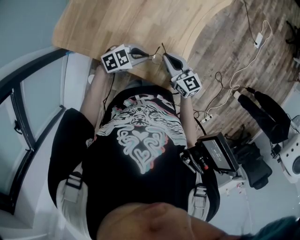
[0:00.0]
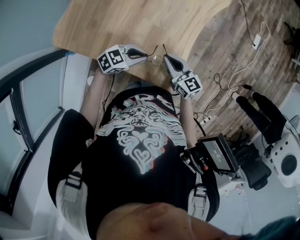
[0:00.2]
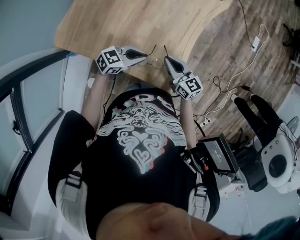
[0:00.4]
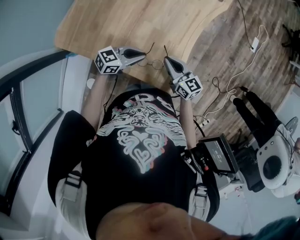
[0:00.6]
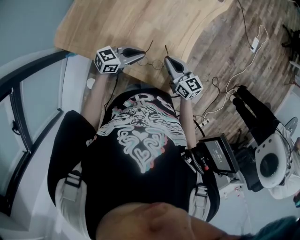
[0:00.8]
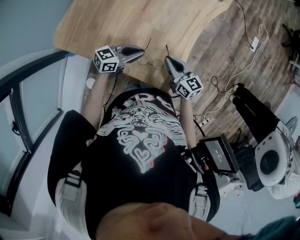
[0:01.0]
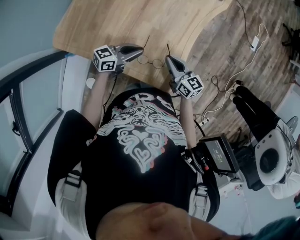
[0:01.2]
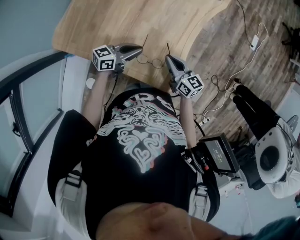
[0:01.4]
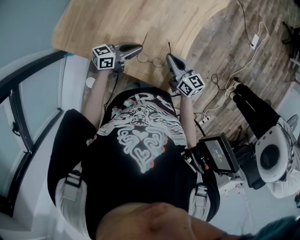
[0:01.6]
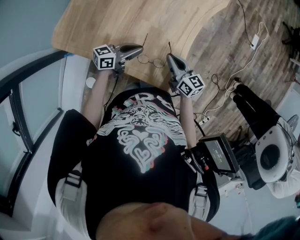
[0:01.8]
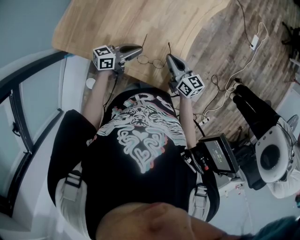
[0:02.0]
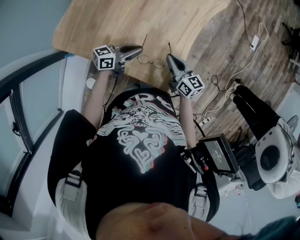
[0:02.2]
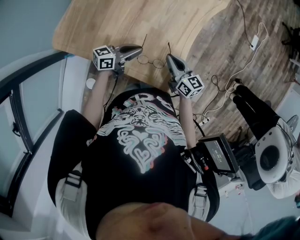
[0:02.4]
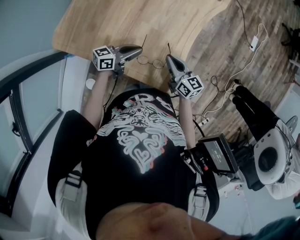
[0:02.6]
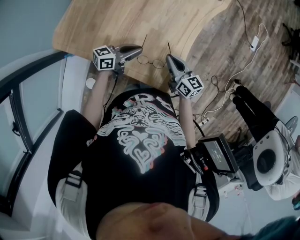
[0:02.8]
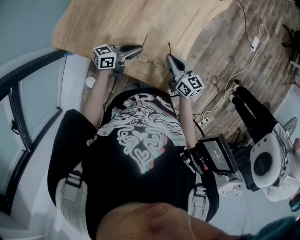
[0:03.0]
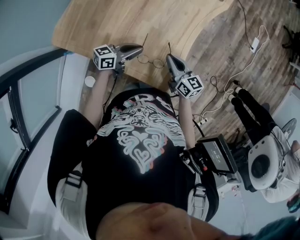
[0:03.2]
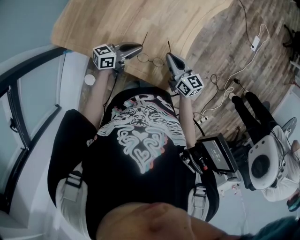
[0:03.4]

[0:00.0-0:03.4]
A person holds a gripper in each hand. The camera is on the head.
0:00.0 to 0:01.6: The left gripper changes place by about 5 cm, and swivels about 50 degrees.
0:01.6 to 0:03.4: Neither gripper changes place.

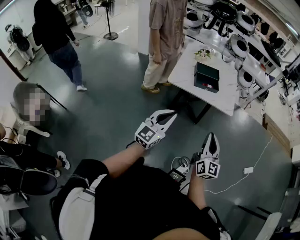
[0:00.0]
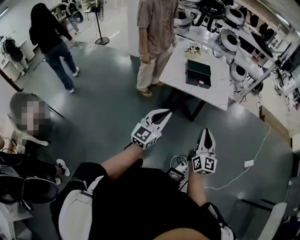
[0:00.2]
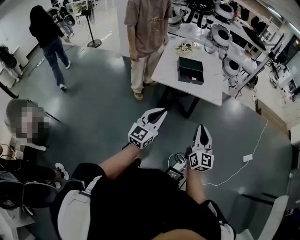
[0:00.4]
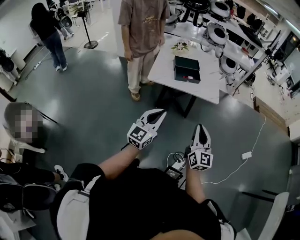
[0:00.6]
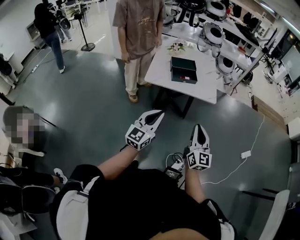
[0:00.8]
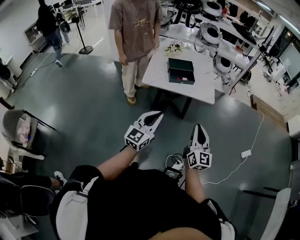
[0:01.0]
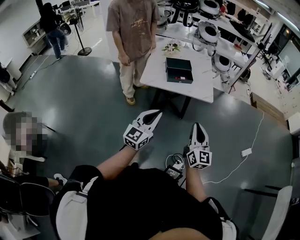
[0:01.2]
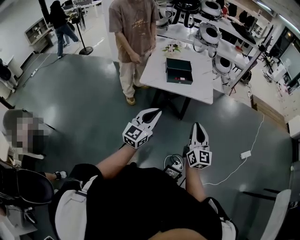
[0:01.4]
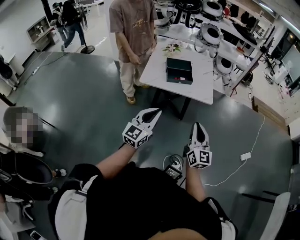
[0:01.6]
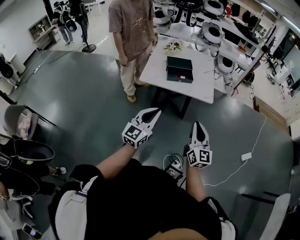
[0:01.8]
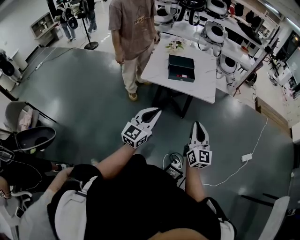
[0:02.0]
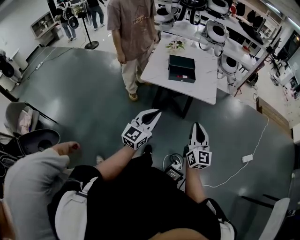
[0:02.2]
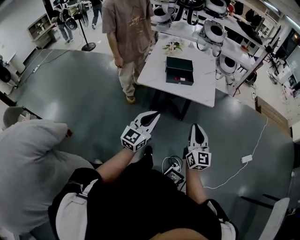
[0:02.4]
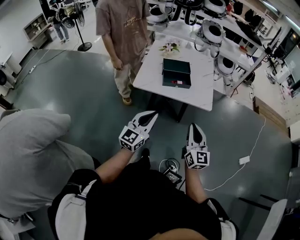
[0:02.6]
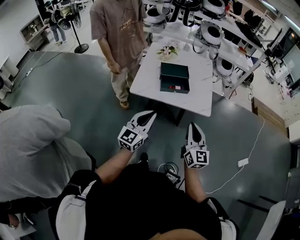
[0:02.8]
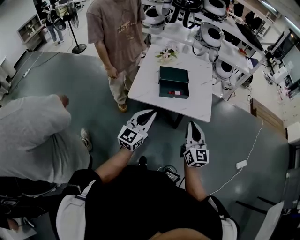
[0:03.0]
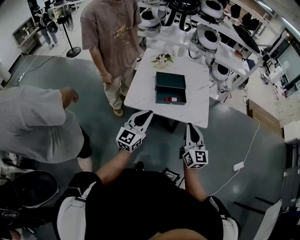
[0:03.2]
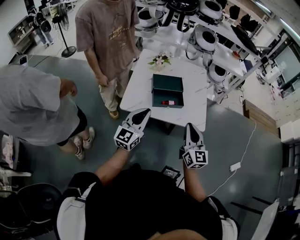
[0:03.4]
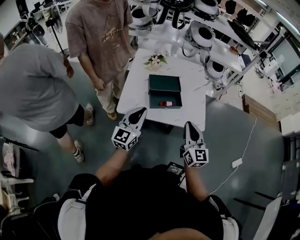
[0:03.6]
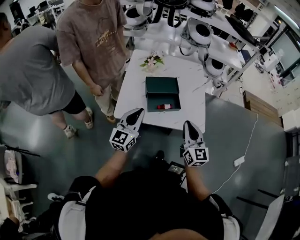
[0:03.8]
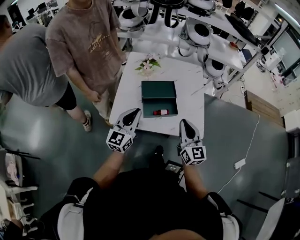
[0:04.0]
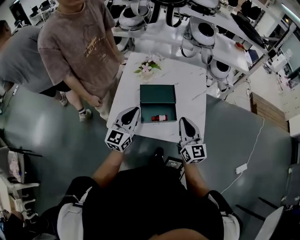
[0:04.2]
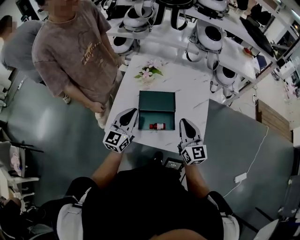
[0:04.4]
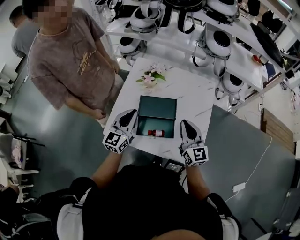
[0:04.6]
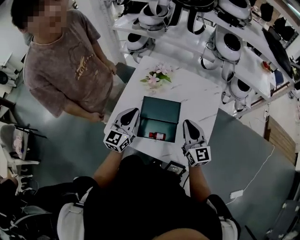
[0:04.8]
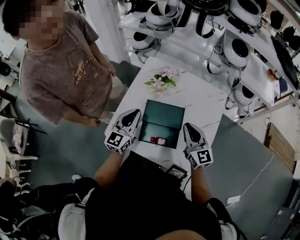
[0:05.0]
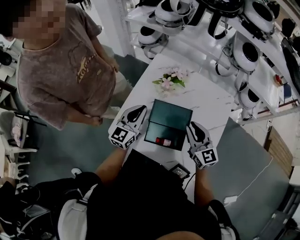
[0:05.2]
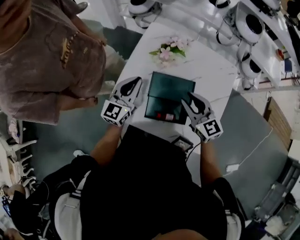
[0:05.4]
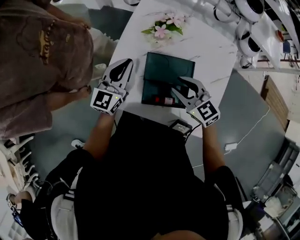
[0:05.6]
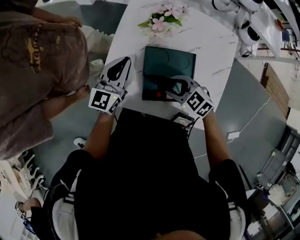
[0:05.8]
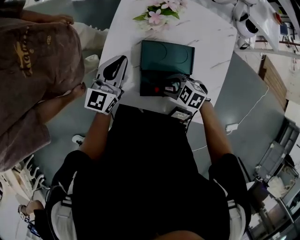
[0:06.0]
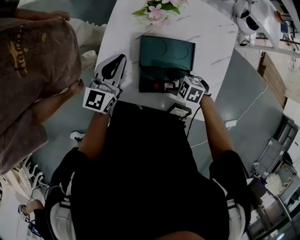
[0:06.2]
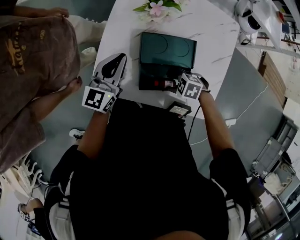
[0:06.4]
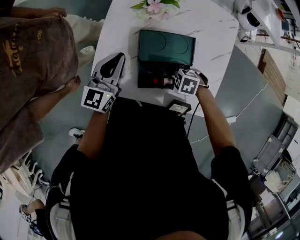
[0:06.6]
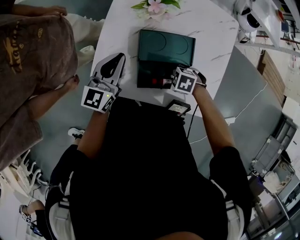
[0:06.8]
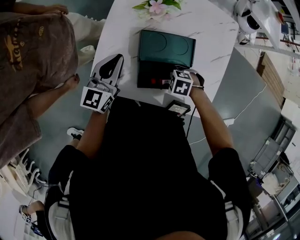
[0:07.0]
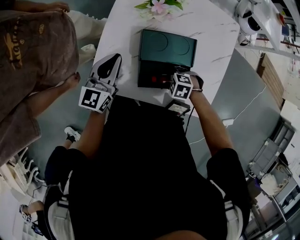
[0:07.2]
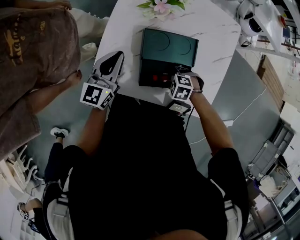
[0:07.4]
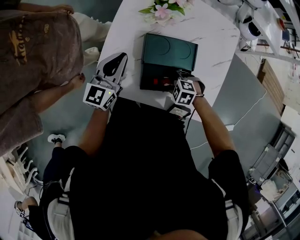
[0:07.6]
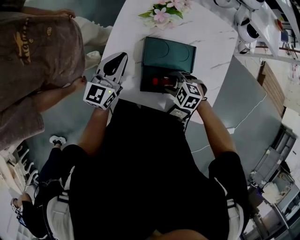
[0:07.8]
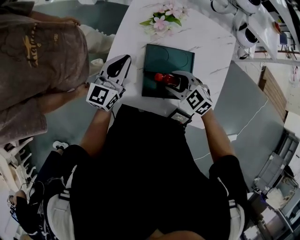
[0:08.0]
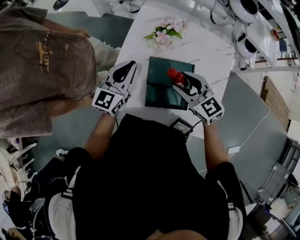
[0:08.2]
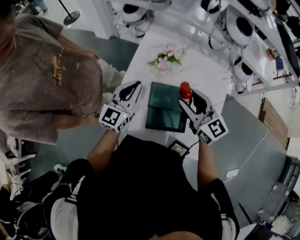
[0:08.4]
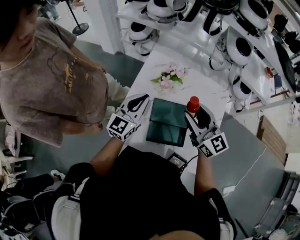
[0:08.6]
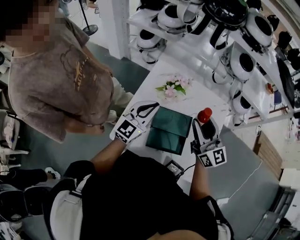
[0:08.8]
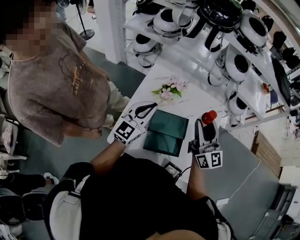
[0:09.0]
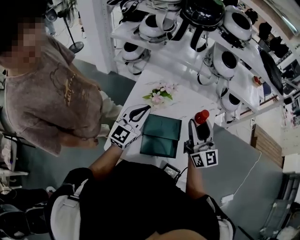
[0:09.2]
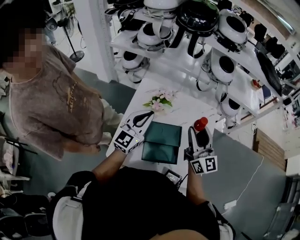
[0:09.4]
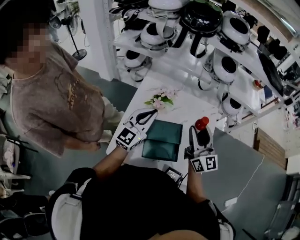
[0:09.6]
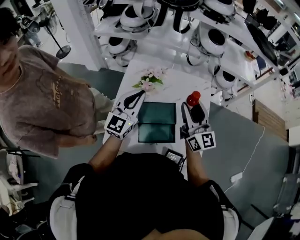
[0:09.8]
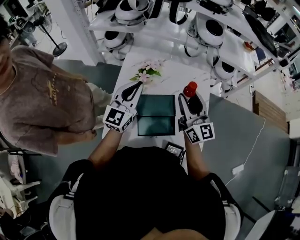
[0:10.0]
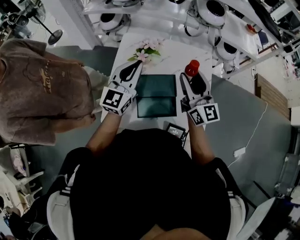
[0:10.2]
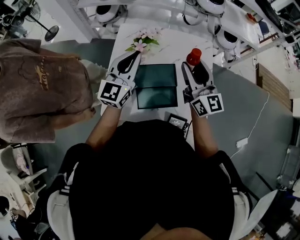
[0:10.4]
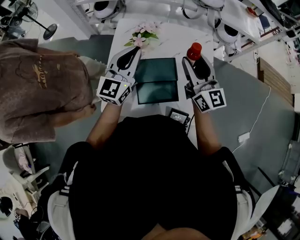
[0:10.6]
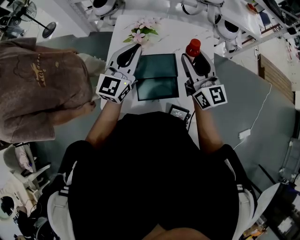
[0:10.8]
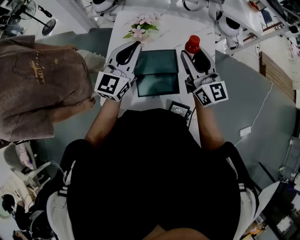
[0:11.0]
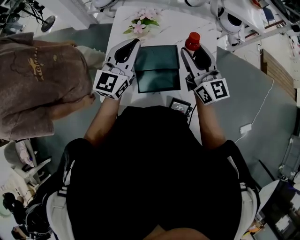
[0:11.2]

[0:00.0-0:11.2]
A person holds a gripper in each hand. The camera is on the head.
0:00.0 to 0:01.6: The two grippers go some 10 cm to the right.
0:01.6 to 0:03.2: Both grippers move forward, approximately 25 cm.
0:03.2 to 0:04.8: The grippers both shift forward by about 35 cm. The right gripper rotates approximately 20 degrees.
0:04.8 to 0:06.4: The left gripper heads downward, covering about 10 cm. The right gripper is displaced downward by about 25 cm, tips its fingers downward by about 60 degrees, and opens its fingers.
0:06.4 to 0:08.0: The right gripper goes approximately 10 cm upward, and rotates about 40 degrees.
0:08.0 to 0:09.6: The left gripper moves upward, about 15 cm. The right gripper heads upward, covering roughly 25 cm, and tips its fingers upward by about 60 degrees.
0:09.6 to 0:11.2: The grippers stay close to where they were, moving slightly.

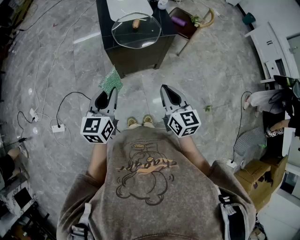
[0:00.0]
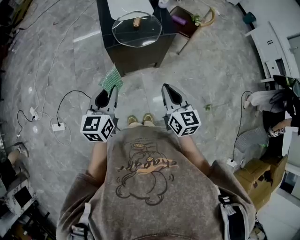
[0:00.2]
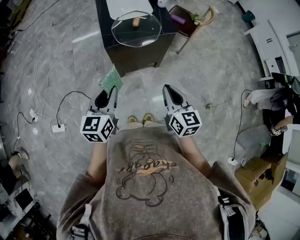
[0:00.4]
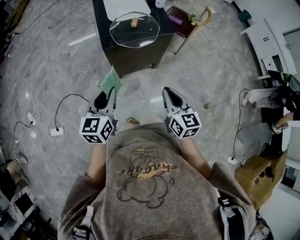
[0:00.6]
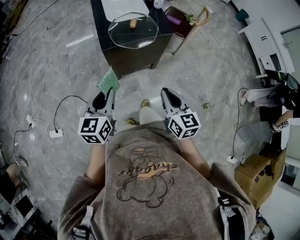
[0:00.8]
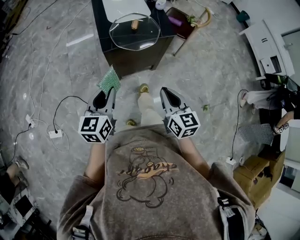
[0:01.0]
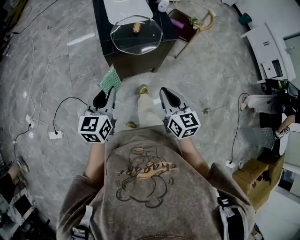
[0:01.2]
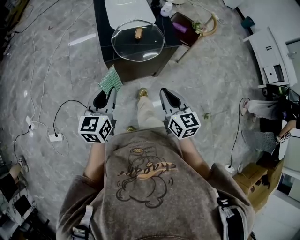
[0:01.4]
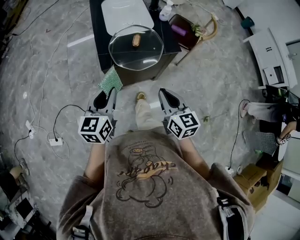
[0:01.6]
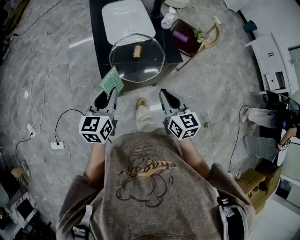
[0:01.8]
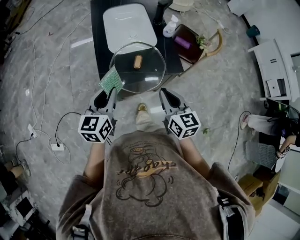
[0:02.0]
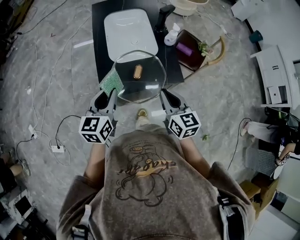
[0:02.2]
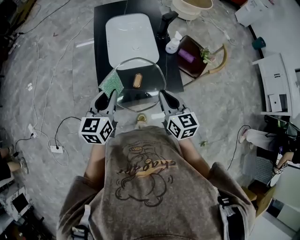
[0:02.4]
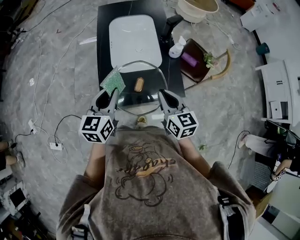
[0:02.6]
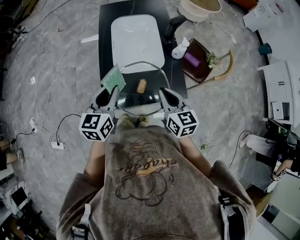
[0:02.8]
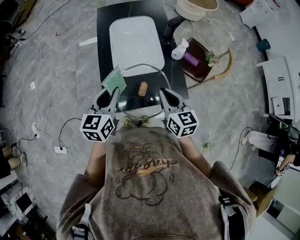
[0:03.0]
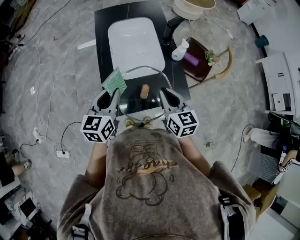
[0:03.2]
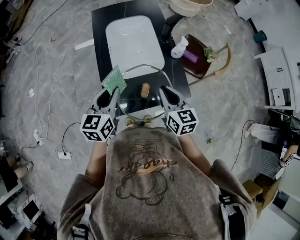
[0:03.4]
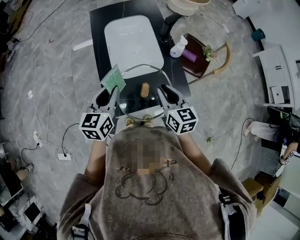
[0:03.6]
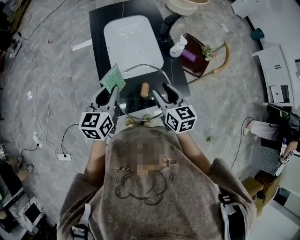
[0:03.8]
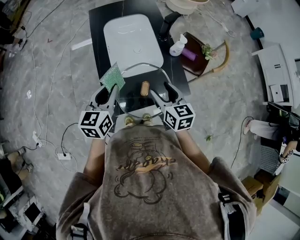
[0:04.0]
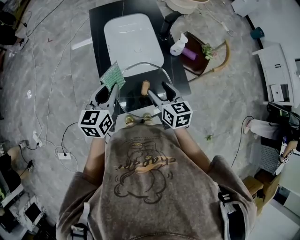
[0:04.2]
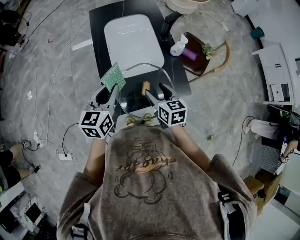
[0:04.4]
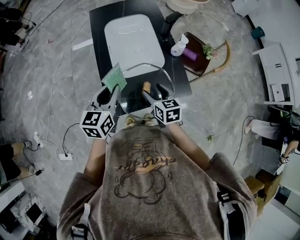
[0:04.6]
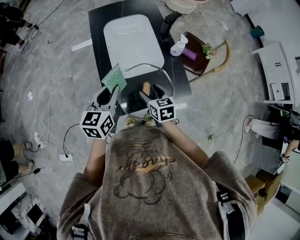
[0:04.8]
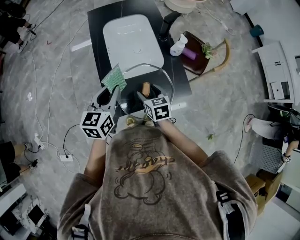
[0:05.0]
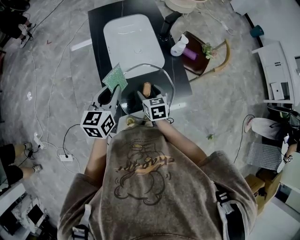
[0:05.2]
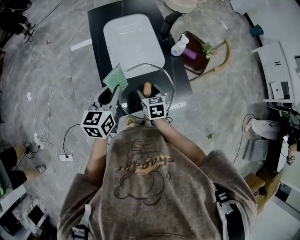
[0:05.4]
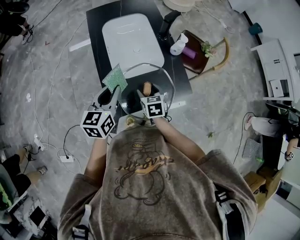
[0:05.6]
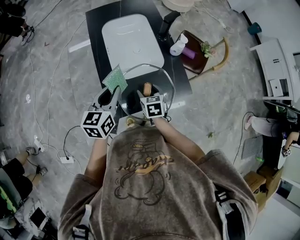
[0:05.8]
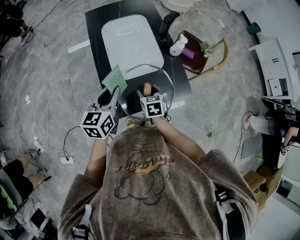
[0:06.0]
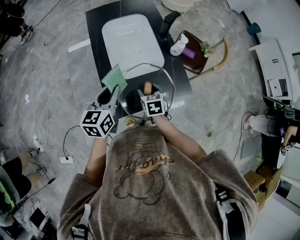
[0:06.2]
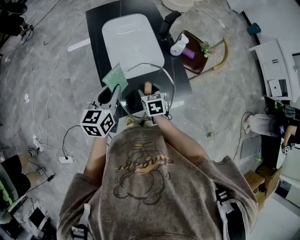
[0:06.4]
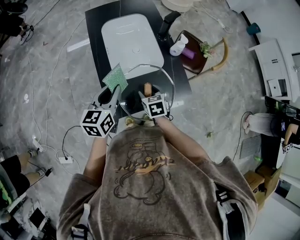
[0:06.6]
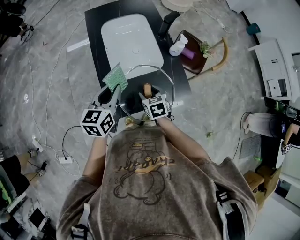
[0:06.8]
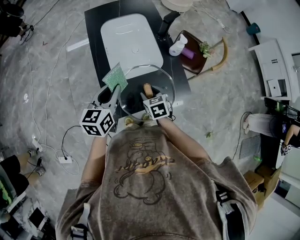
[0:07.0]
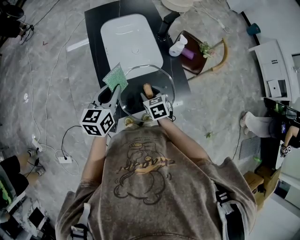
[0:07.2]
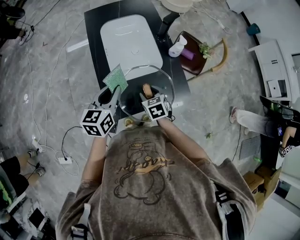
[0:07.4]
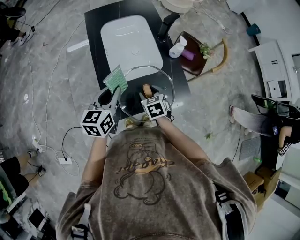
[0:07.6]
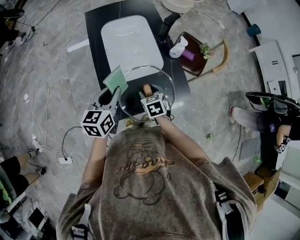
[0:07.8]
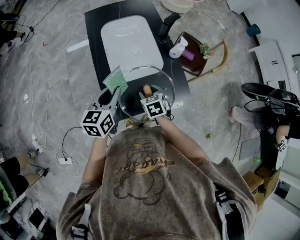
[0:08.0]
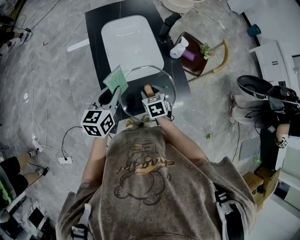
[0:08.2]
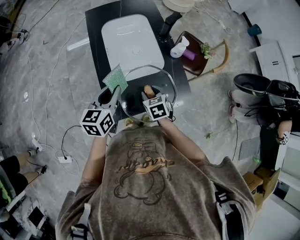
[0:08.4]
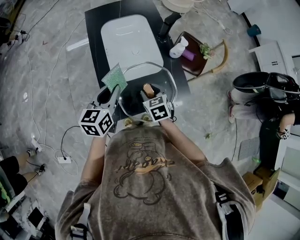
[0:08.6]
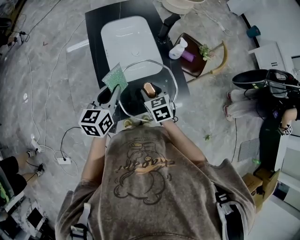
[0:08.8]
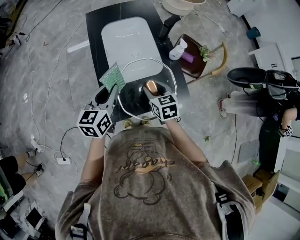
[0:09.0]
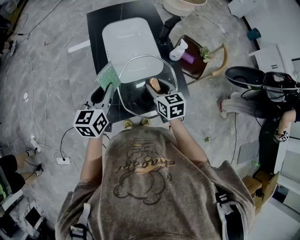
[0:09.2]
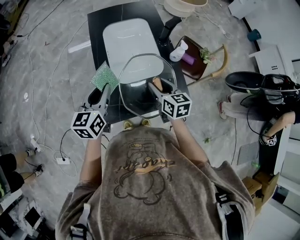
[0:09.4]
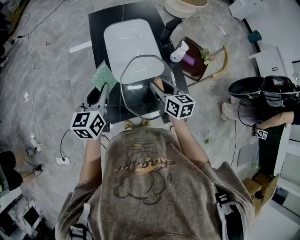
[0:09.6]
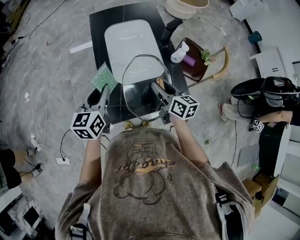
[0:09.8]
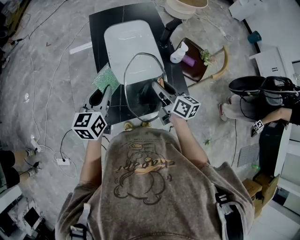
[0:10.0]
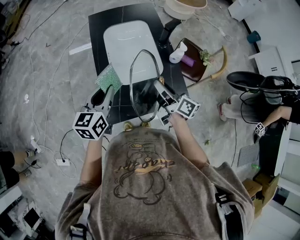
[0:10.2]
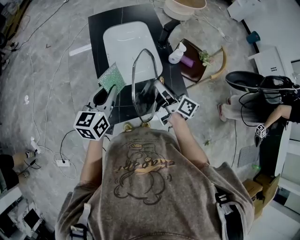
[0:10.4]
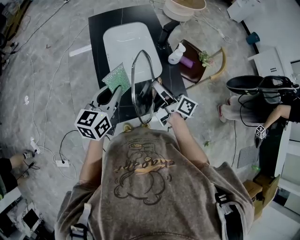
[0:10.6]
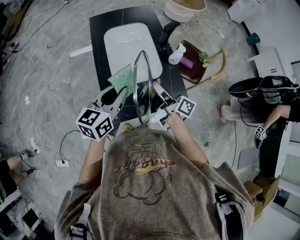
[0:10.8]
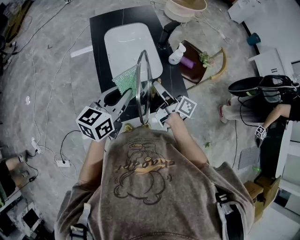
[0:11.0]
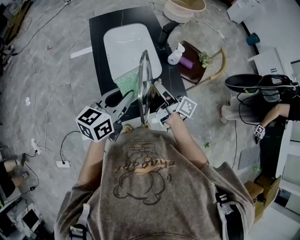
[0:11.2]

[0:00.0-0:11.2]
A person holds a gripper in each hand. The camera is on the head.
0:00.0 to 0:01.6: The two grippers go roughly 15 cm forward.
0:01.6 to 0:03.2: Both grippers move forward, about 30 cm.
0:03.2 to 0:04.8: The right gripper shifts roughly 10 cm downward and to the left, and opens.
0:04.8 to 0:08.0: The grippers make only small movements.
0:08.0 to 0:09.6: The right gripper heads upward, covering approximately 10 cm, and changes its angle by roughly 40 degrees; the left gripper changes place by roughly 5 cm.
0:09.6 to 0:11.2: The right gripper rotates around the line of its fingers by roughly 40 degrees, clockwise from behind. The left gripper goes roughly 10 cm to the right and backward, and changes its angle by roughly 30 degrees.
